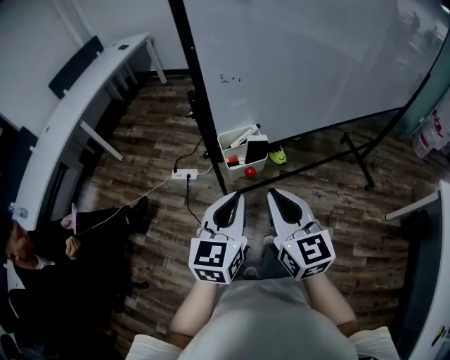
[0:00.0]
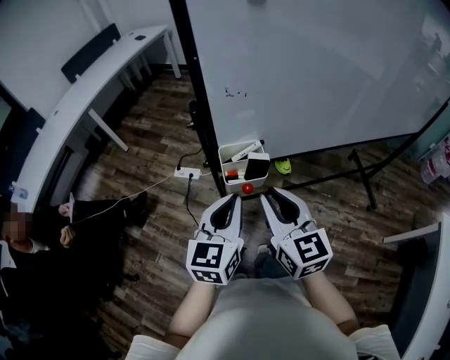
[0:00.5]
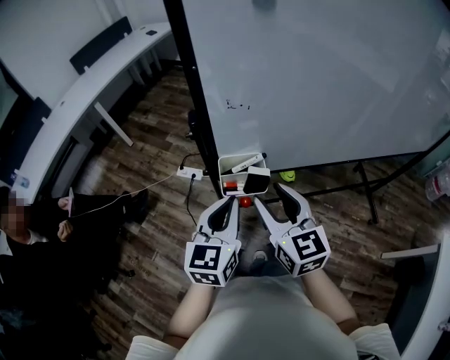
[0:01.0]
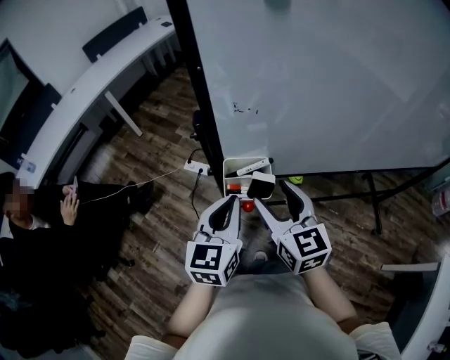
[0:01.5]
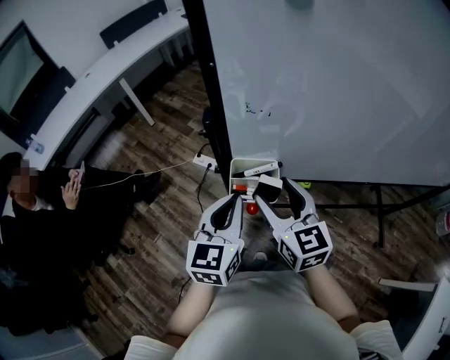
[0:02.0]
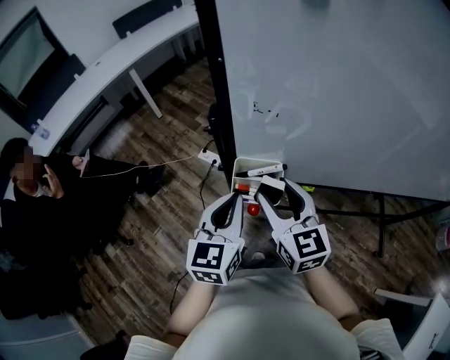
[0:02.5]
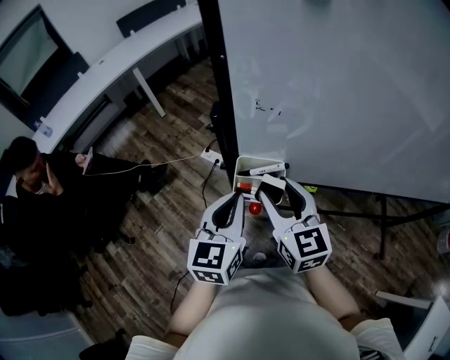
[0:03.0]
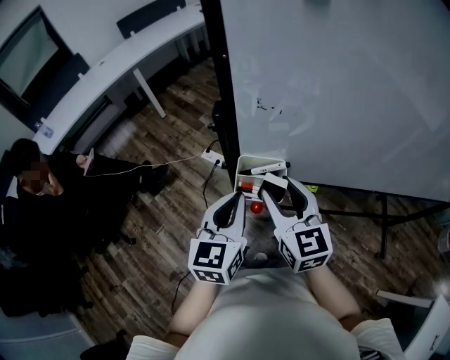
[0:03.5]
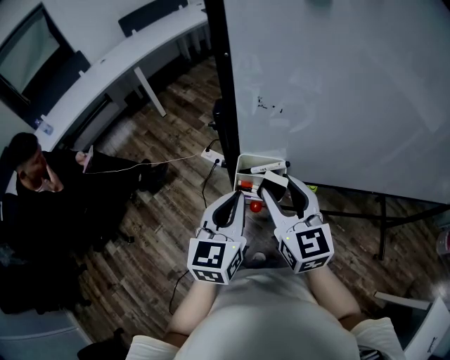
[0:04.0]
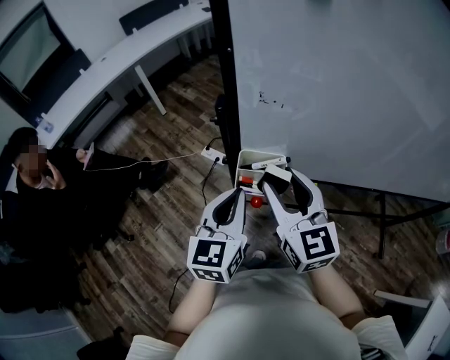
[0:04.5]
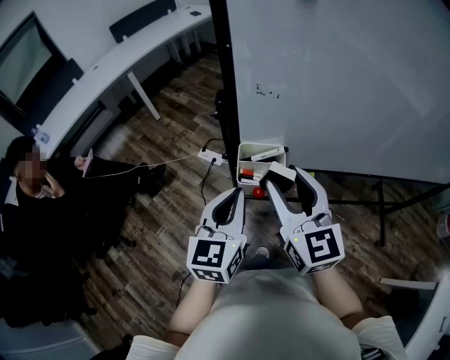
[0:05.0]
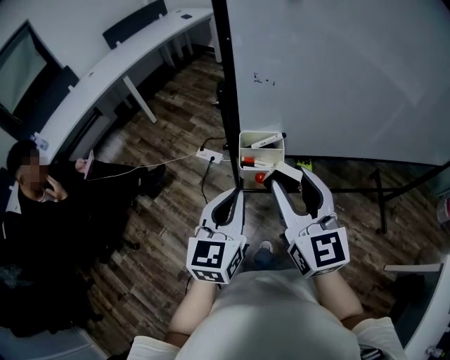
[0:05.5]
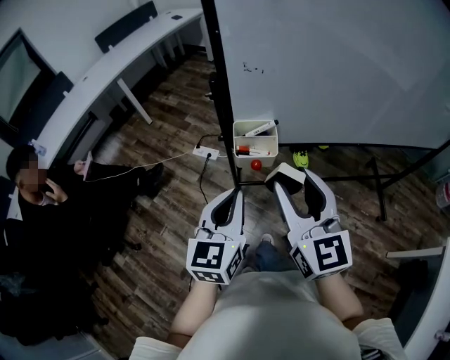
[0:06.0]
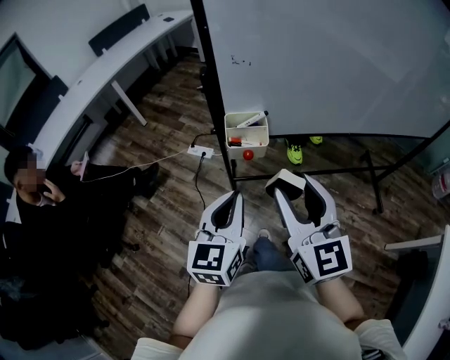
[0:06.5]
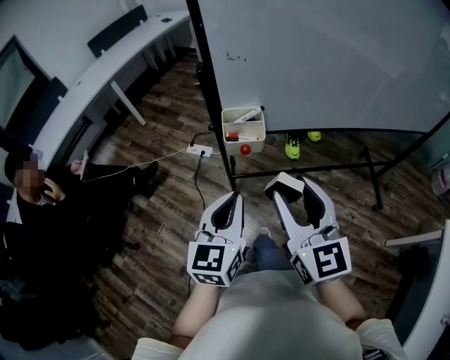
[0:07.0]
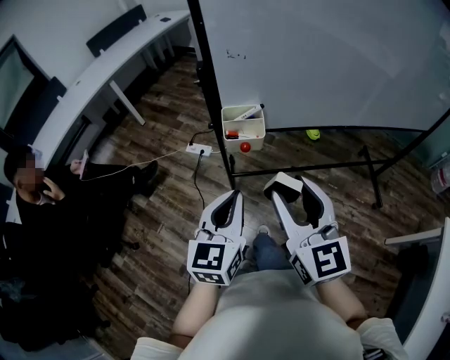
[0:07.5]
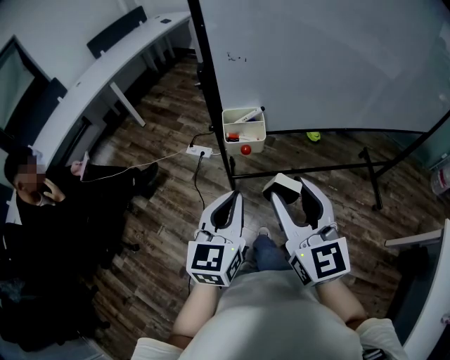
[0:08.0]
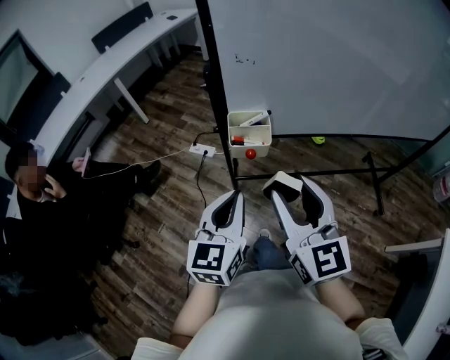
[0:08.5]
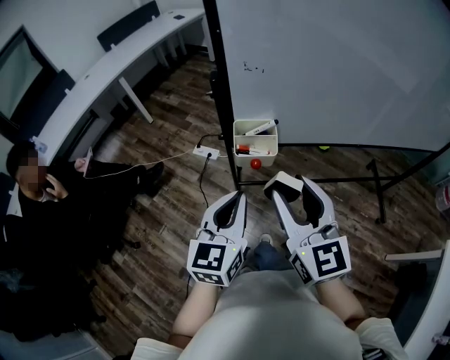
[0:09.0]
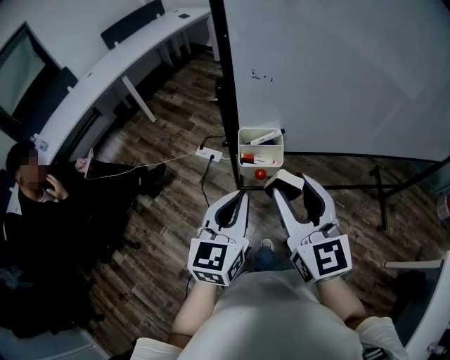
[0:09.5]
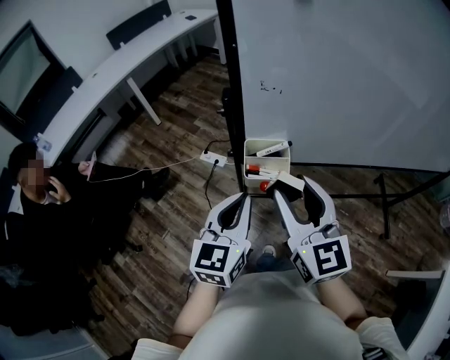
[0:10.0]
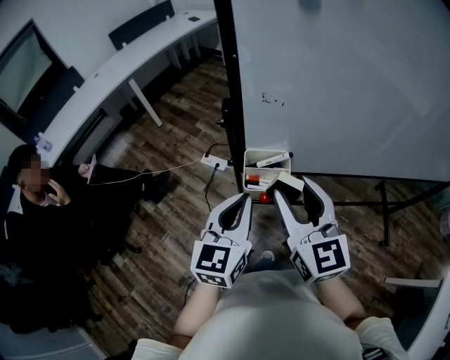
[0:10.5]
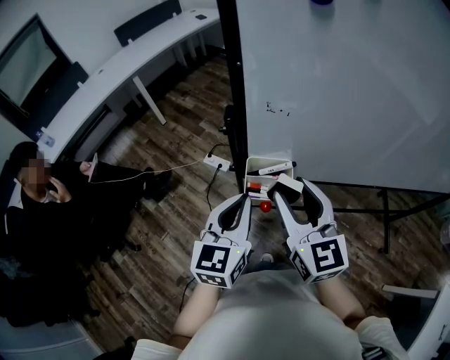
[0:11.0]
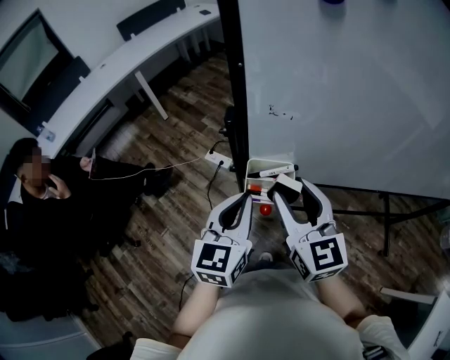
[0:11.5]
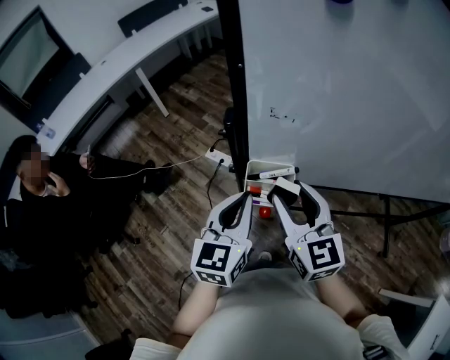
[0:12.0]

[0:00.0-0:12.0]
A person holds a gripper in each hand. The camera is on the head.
0:00.0 to 0:02.0: Both grippers travel together forward, about 10 cm. The right gripper rotates roughly 20 degrees, and opens; the left gripper changes its angle by roughly 20 degrees.
0:02.0 to 0:04.0: The grippers move only a little.
0:04.0 to 0:06.0: The right gripper moves backward and upward, about 15 cm; the left gripper moves backward, roughly 10 cm.
0:06.0 to 0:08.0: The two grippers go roughly 5 cm backward.
0:08.0 to 0:10.0: The grippers both shift forward by approximately 10 cm.
0:10.0 to 0:12.0: Both grippers travel together forward, approximately 10 cm.

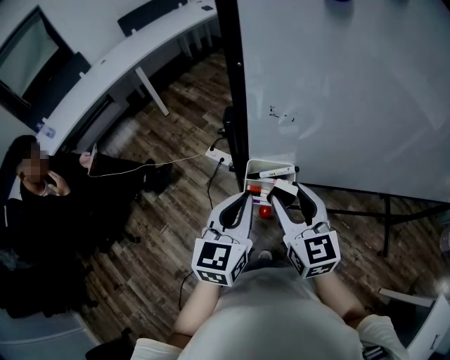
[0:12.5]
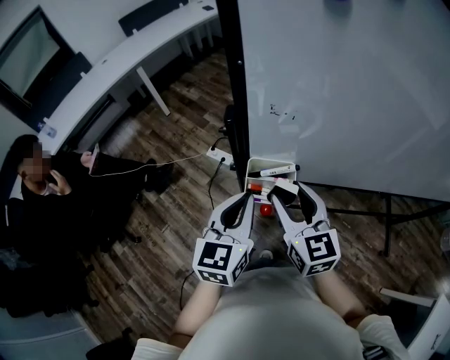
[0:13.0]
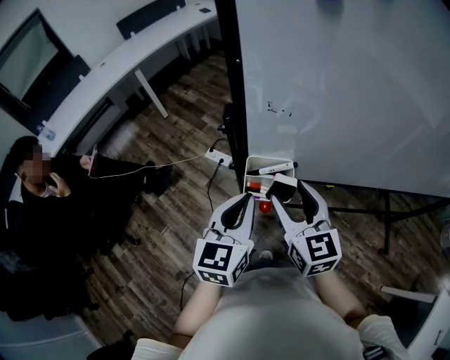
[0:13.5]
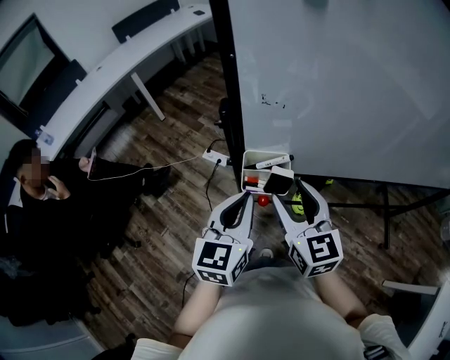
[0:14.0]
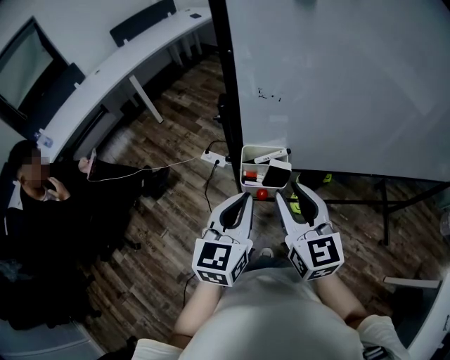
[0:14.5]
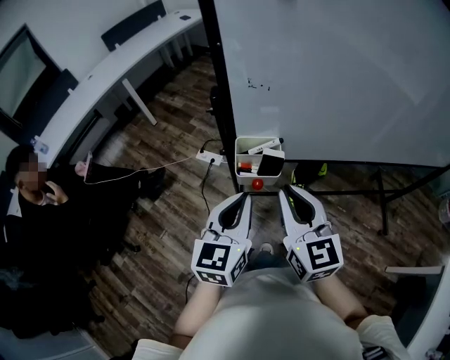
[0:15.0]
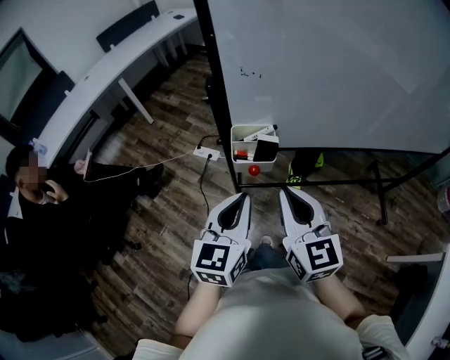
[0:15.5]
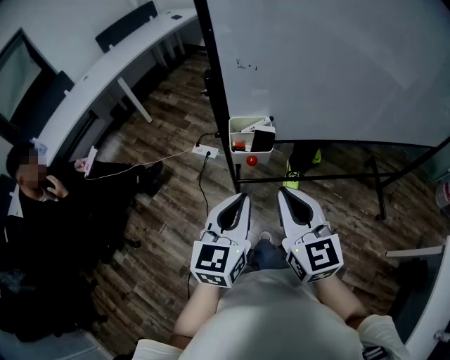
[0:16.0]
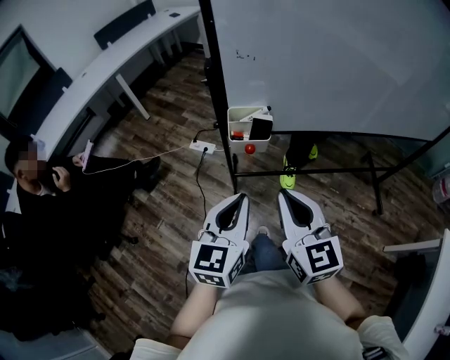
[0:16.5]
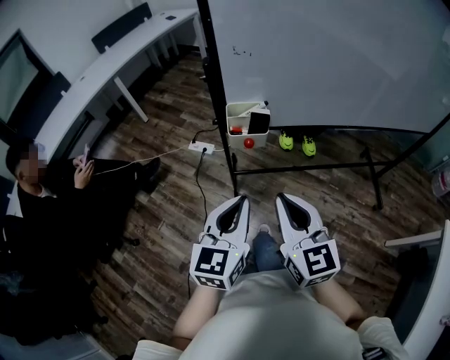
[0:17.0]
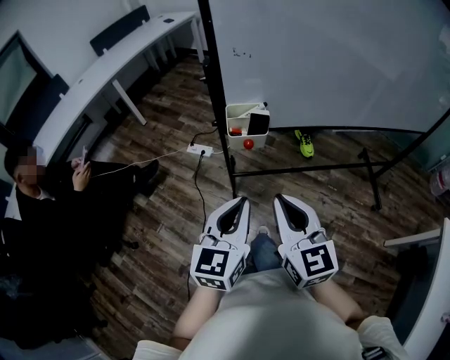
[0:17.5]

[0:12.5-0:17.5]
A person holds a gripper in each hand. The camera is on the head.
0:12.5 to 0:15.0: Both grippers travel together backward, approximately 10 cm. The right gripper closes up.
0:15.0 to 0:17.5: The two grippers go approximately 15 cm backward.

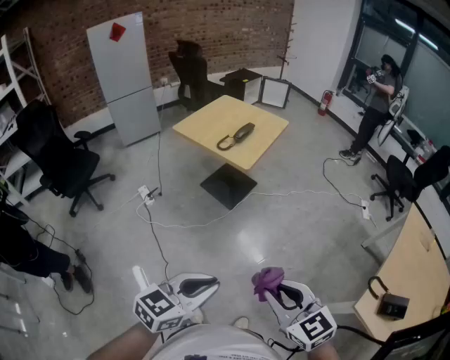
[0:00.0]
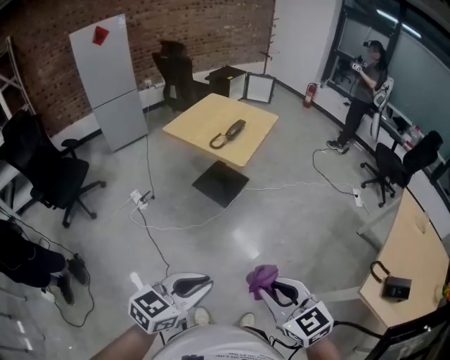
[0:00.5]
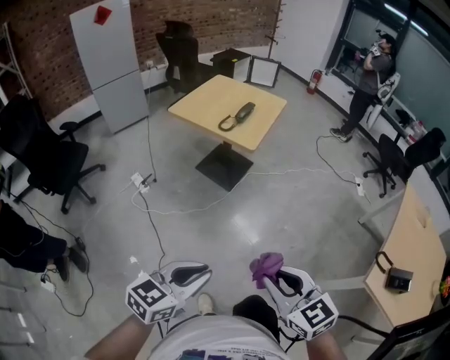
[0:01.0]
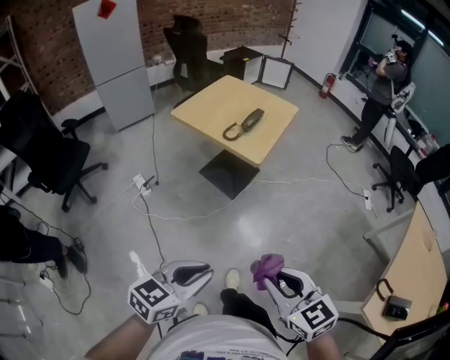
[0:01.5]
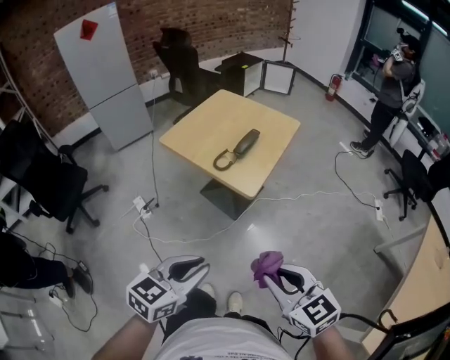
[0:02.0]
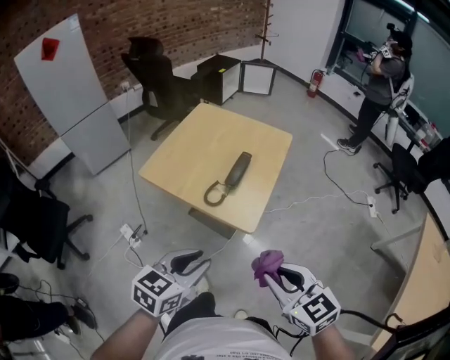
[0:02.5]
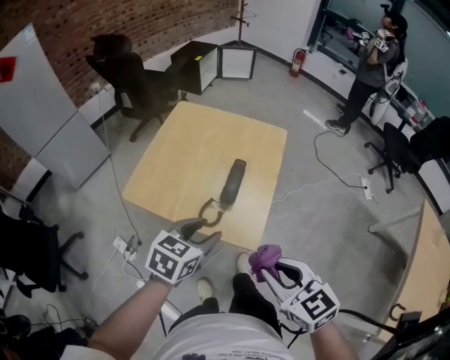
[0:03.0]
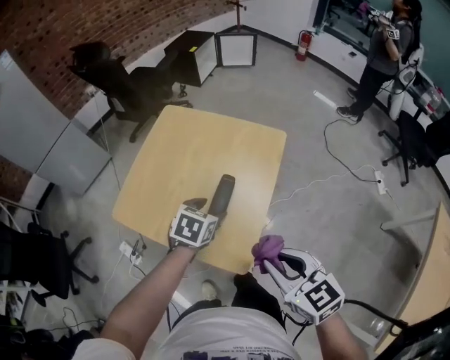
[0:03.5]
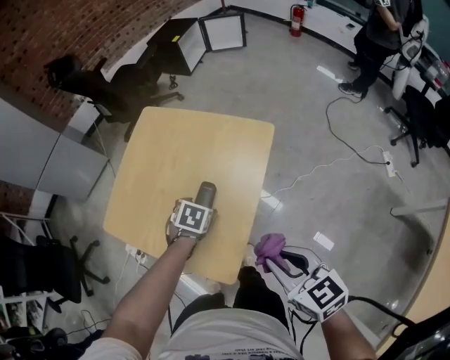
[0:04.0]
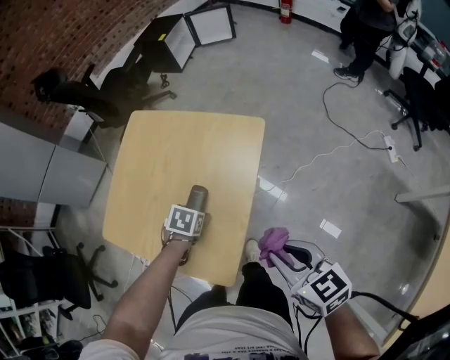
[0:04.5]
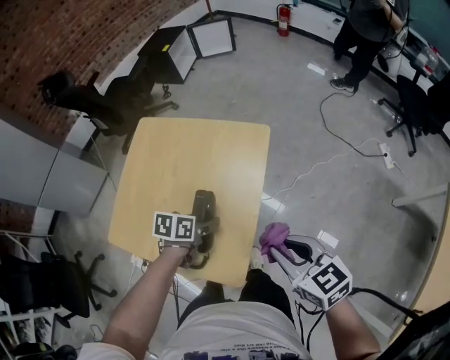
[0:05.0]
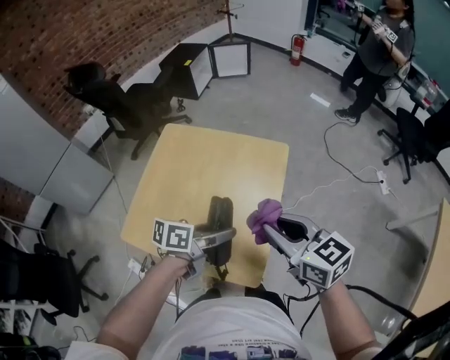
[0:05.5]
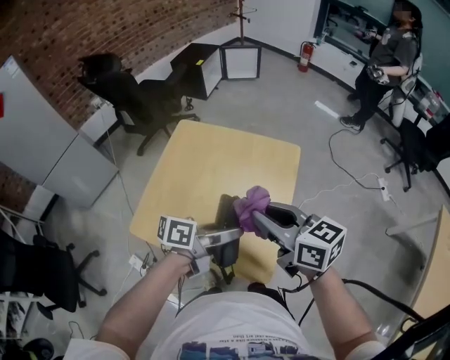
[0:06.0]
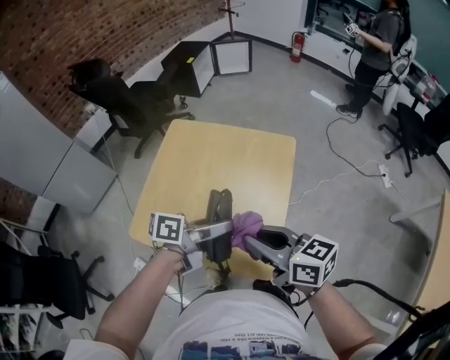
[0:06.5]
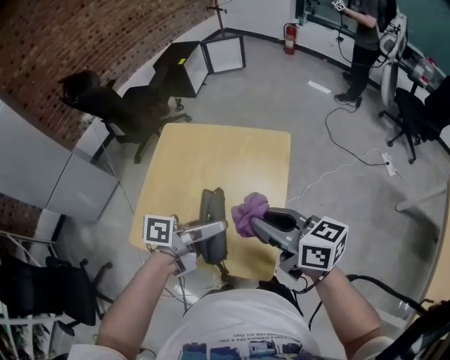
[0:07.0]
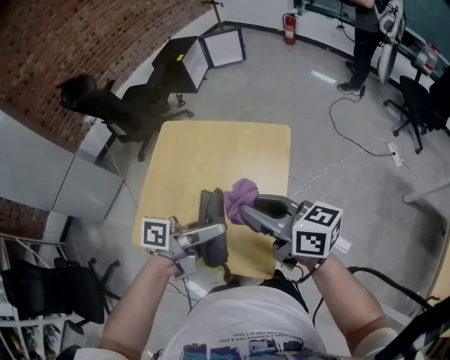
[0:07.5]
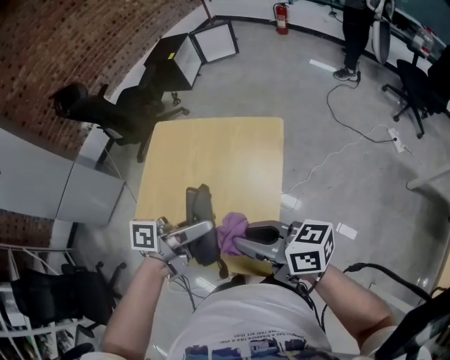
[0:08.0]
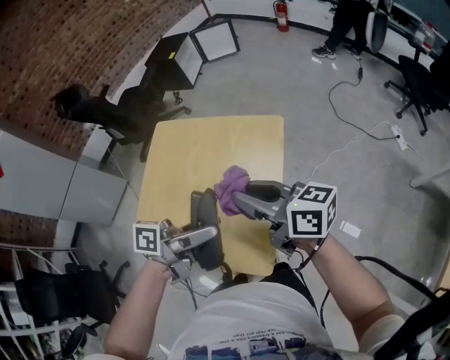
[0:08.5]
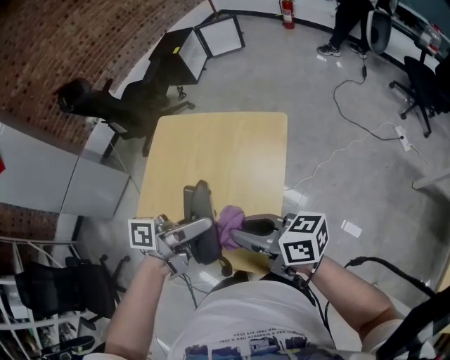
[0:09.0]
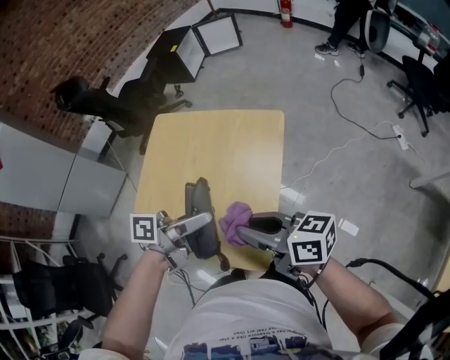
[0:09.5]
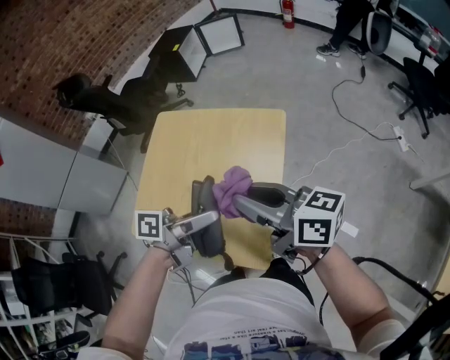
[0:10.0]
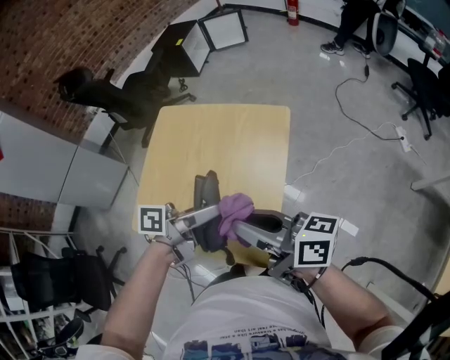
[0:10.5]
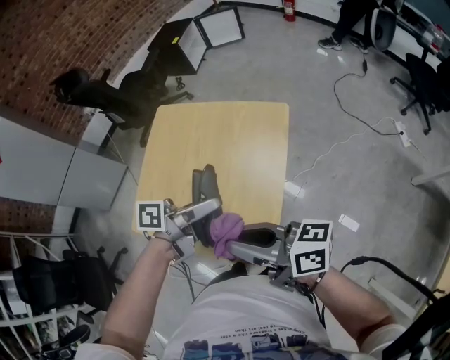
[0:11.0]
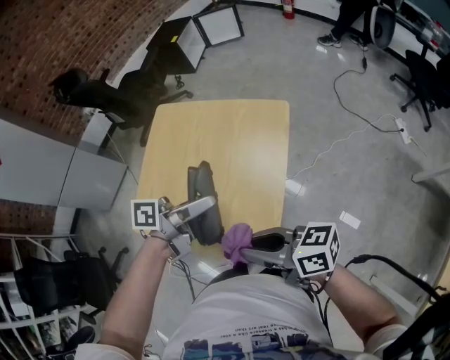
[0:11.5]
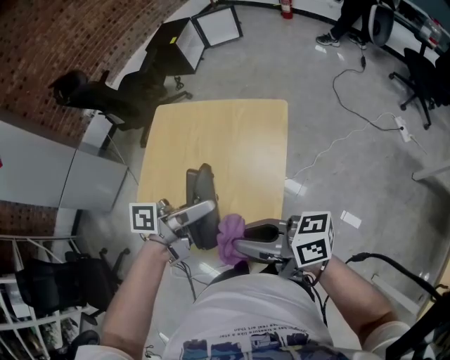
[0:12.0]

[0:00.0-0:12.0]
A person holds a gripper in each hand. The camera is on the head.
0:00.0 to 0:02.0: The grippers both shift forward by approximately 25 cm.
0:02.0 to 0:04.0: The left gripper changes place by some 60 cm, angles its fingers downward, by approximately 50 degrees, and opens; the right gripper shifts by about 35 cm, and turns by about 20 degrees.
0:04.0 to 0:06.0: The left gripper is displaced upward by some 15 cm, and tips its fingers upward by roughly 60 degrees; the right gripper moves approximately 20 cm.
0:06.0 to 0:08.0: The right gripper shifts by about 5 cm, and changes its angle by about 20 degrees; the left gripper is displaced upward by some 5 cm.
0:08.0 to 0:10.0: The right gripper changes place by approximately 10 cm.
0:10.0 to 0:12.0: The right gripper changes place by about 10 cm.
